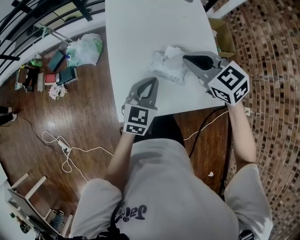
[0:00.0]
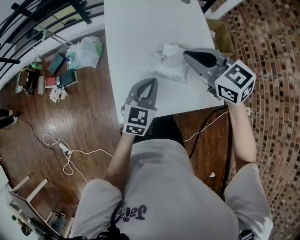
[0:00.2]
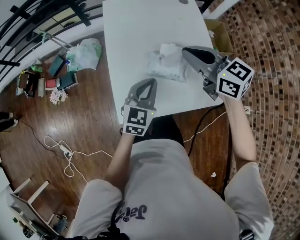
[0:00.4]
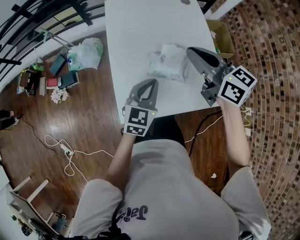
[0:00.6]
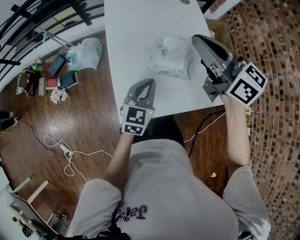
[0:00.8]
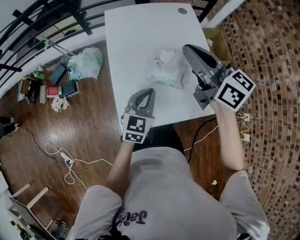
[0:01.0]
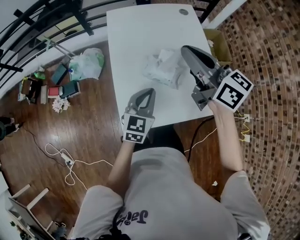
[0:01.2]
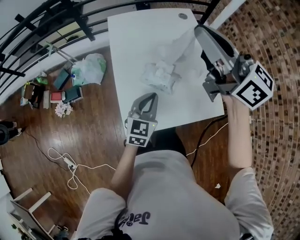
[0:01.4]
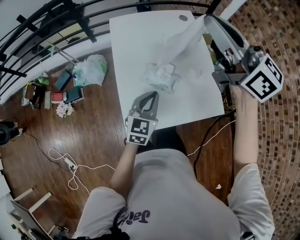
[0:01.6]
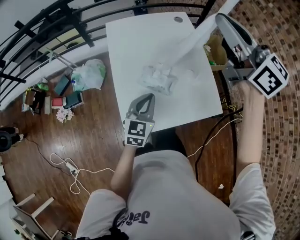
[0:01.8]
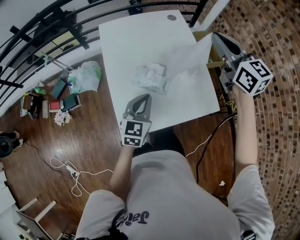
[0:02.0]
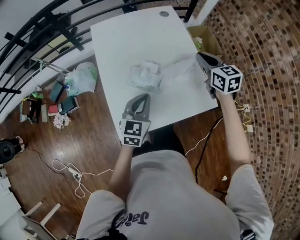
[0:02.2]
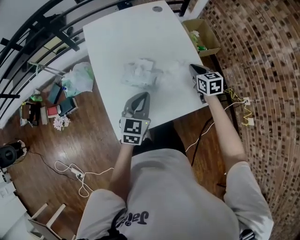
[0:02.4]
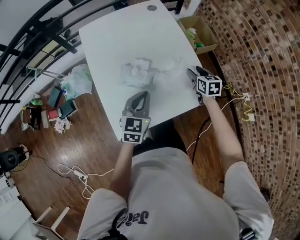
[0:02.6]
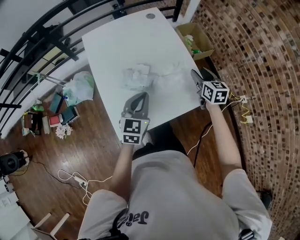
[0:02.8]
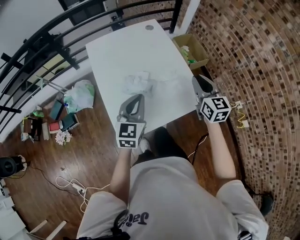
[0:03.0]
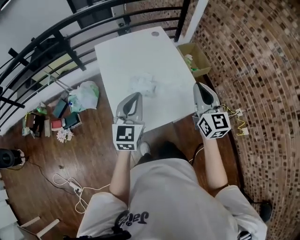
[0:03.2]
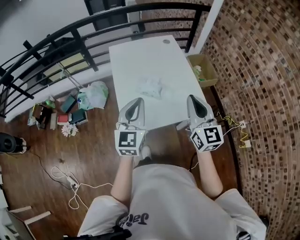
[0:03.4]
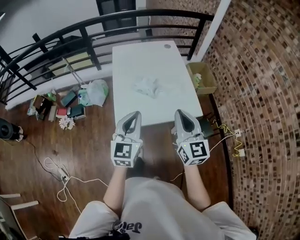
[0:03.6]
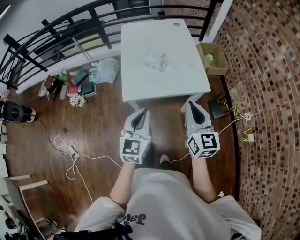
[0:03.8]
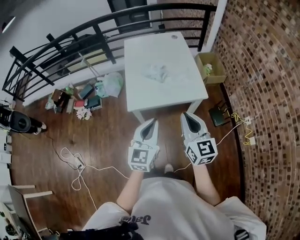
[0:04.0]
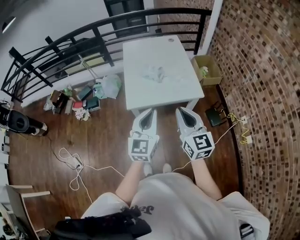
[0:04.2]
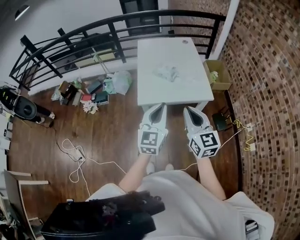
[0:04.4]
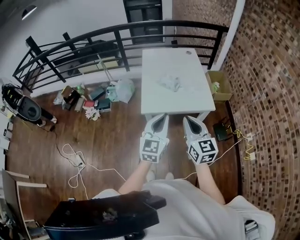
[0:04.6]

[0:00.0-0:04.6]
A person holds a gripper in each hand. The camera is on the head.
0:00.0 to 0:01.6: The right gripper is displaced upward by roughly 25 cm, and tilts its fingers about 40 degrees upward.
0:01.6 to 0:03.0: The right gripper travels downward and to the right by some 30 cm, rotates roughly 50 degrees, and opens and closes again. The left gripper heads upward, covering roughly 5 cm.
0:03.0 to 0:04.6: The grippers both shift backward by roughly 35 cm. The right gripper rotates about 20 degrees.

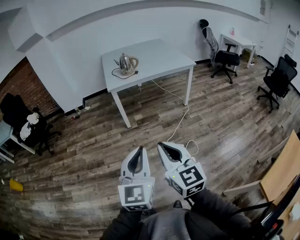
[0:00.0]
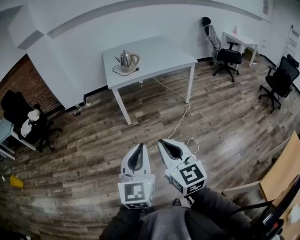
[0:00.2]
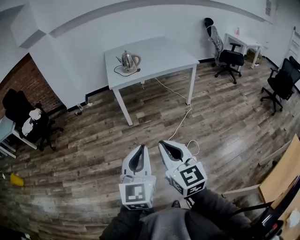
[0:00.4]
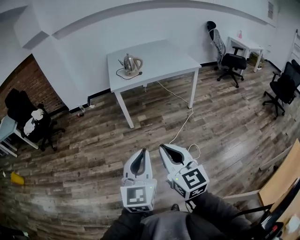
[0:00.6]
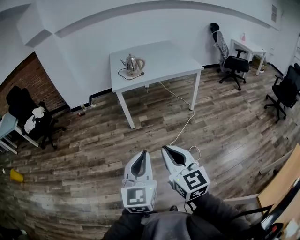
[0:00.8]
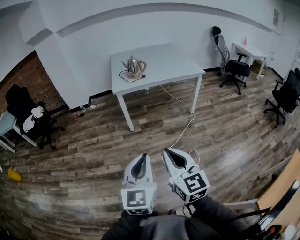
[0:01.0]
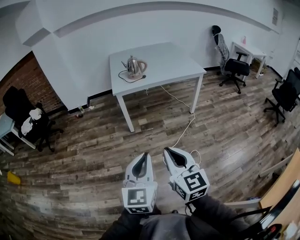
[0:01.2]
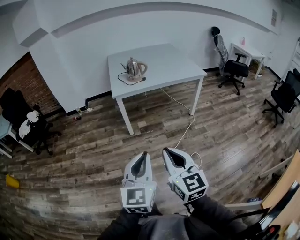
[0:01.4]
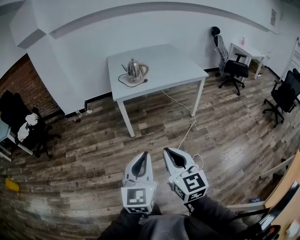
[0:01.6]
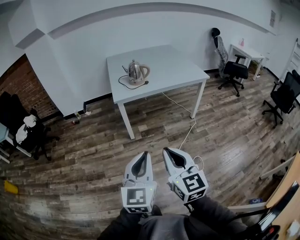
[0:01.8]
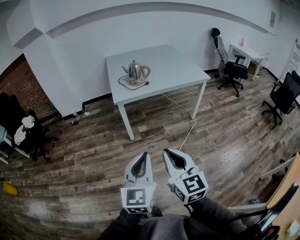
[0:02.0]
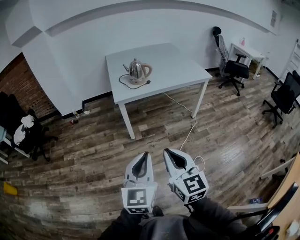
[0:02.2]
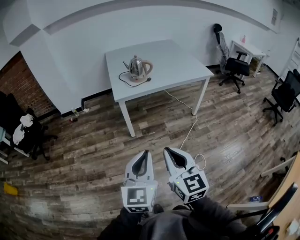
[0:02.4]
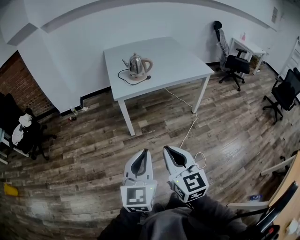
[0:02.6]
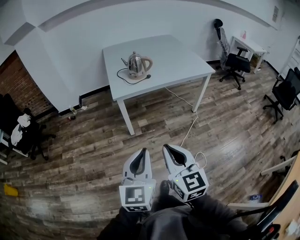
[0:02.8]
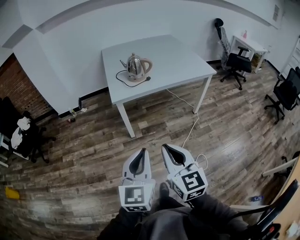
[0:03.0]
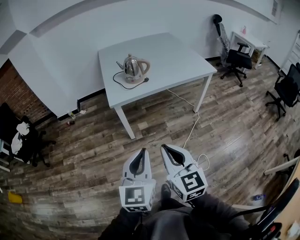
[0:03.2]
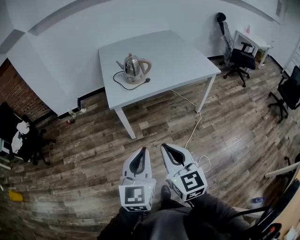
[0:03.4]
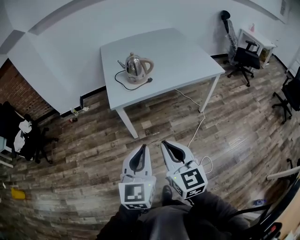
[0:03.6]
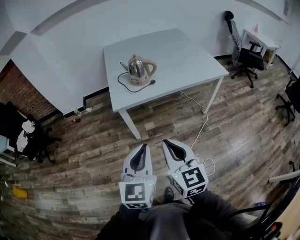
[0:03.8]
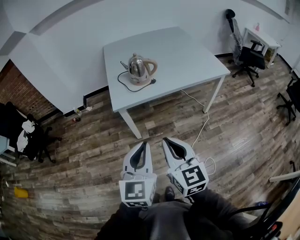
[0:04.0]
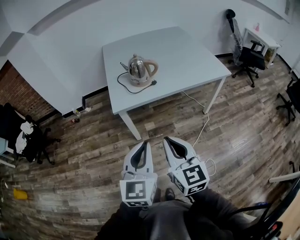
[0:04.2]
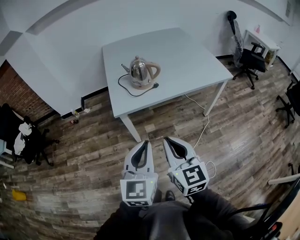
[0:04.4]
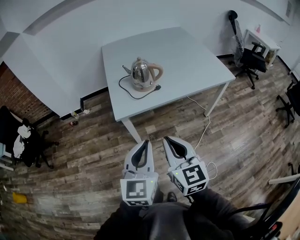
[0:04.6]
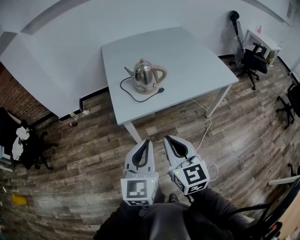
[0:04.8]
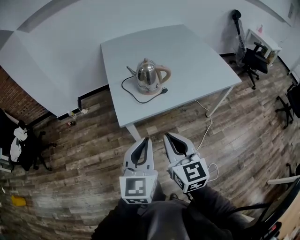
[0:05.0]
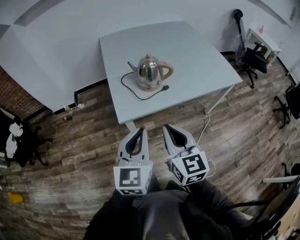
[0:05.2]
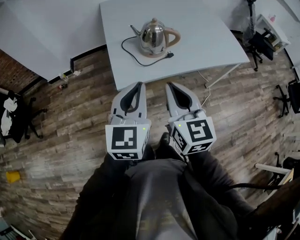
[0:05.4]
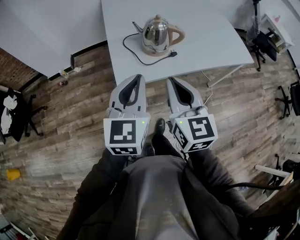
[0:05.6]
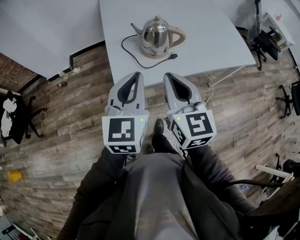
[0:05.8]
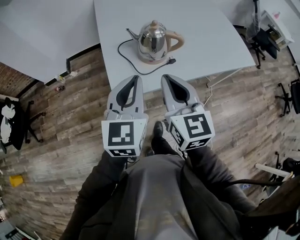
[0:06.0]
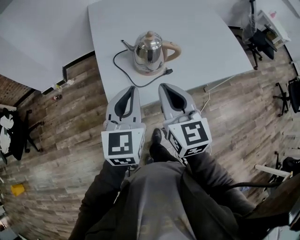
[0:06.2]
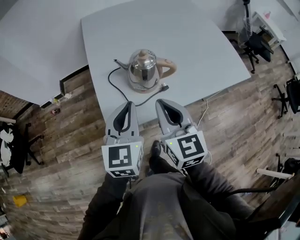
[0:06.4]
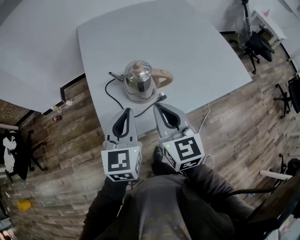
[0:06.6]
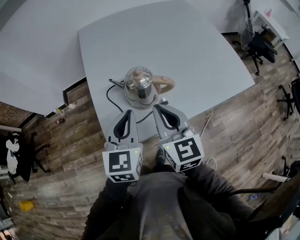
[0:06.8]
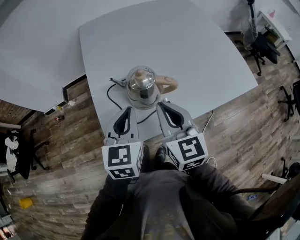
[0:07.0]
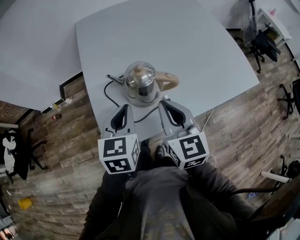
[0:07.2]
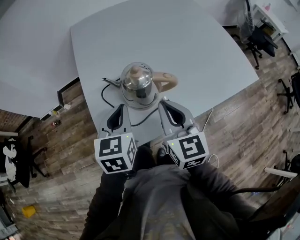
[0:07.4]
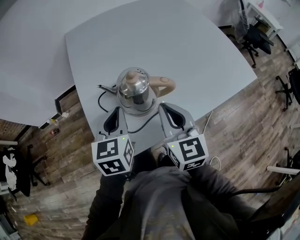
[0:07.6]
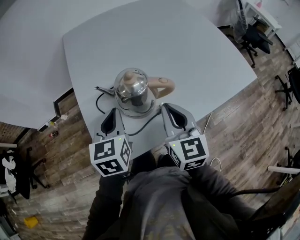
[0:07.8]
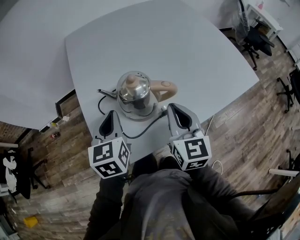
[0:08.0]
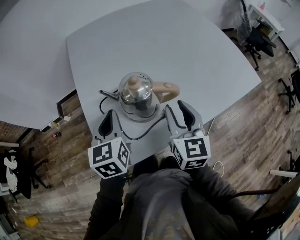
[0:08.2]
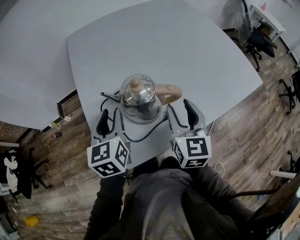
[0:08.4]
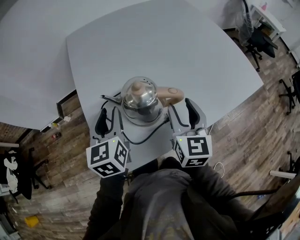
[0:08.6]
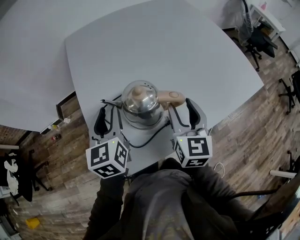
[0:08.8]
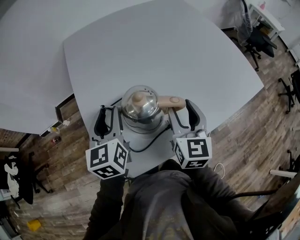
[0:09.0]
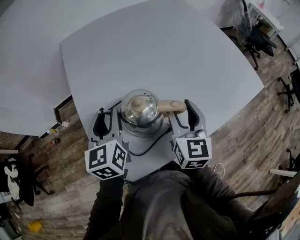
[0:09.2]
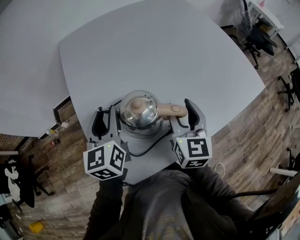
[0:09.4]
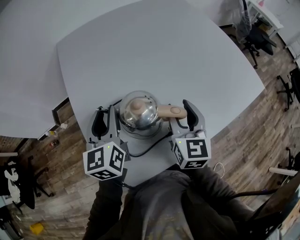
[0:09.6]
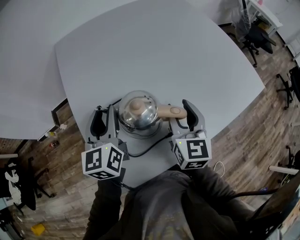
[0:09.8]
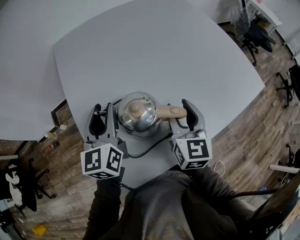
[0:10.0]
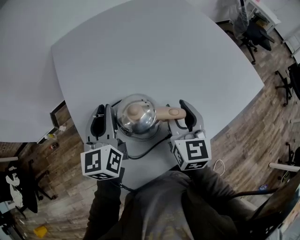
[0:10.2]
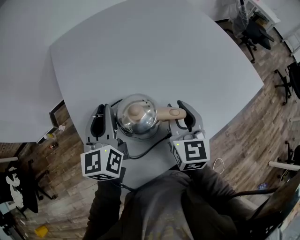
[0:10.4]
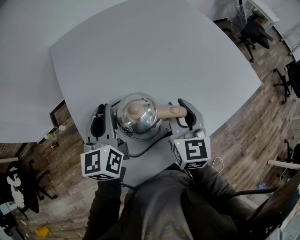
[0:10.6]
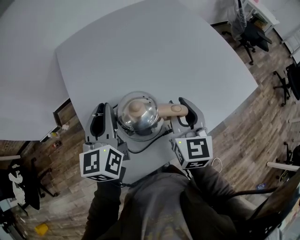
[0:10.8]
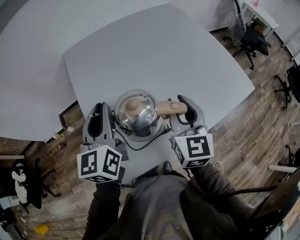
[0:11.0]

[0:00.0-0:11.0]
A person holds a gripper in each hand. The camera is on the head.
0:00.0 to 0:01.6: Both grippers travel together forward, approximately 15 cm.
0:01.6 to 0:03.2: Both grippers move forward, approximately 20 cm.
0:03.2 to 0:04.8: The grippers both shift forward by some 25 cm.
0:04.8 to 0:06.2: Both grippers move forward, about 25 cm.
0:06.2 to 0:07.8: The left gripper is displaced forward and downward by some 20 cm; the right gripper moves forward, downward and to the right, about 20 cm.
0:07.8 to 0:09.4: The two grippers go roughly 10 cm forward. The right gripper opens. The left gripper opens its fingers.
0:09.4 to 0:11.0: Both grippers travel together upward, about 15 cm. The left gripper closes.

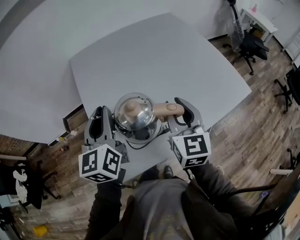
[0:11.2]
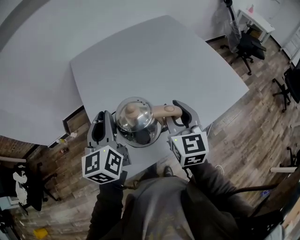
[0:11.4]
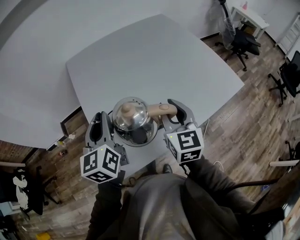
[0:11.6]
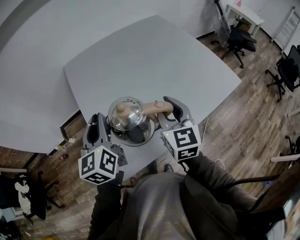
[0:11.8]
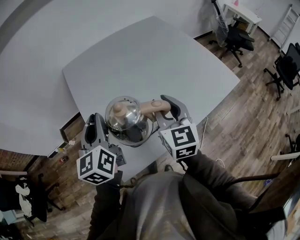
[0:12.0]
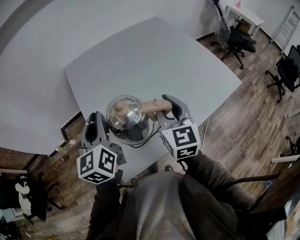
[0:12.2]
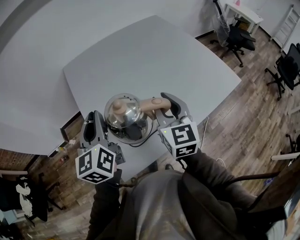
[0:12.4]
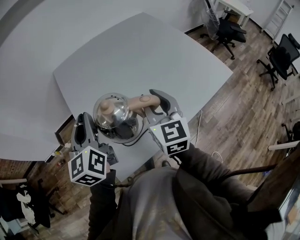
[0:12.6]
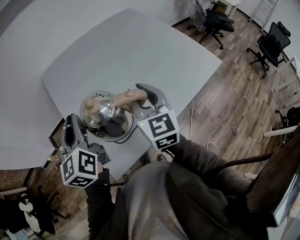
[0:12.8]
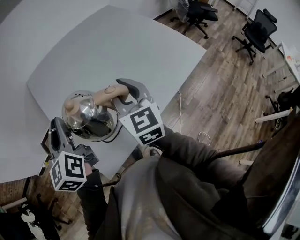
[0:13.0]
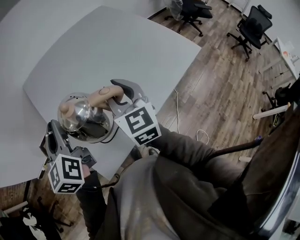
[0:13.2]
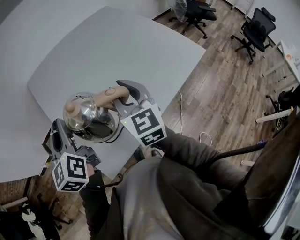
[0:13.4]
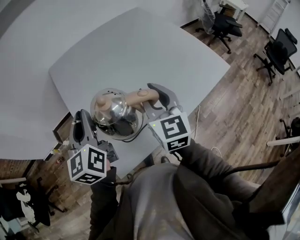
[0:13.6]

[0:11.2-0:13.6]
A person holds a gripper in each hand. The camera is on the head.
0:11.2 to 0:12.4: There are only small adjustments of the grippers.
0:12.4 to 0:13.6: Both grippers stay put.

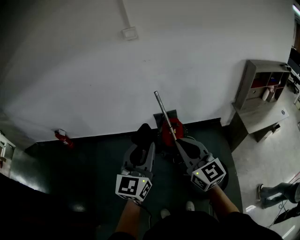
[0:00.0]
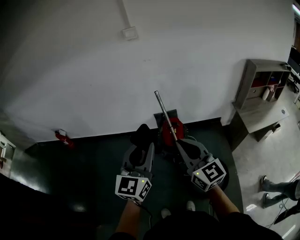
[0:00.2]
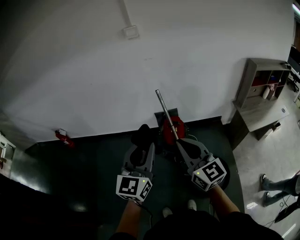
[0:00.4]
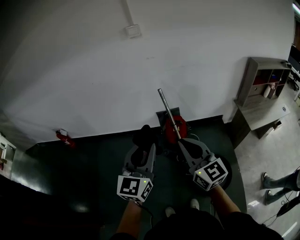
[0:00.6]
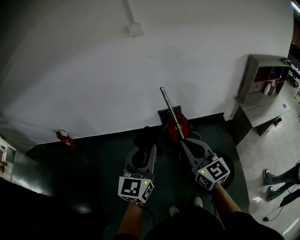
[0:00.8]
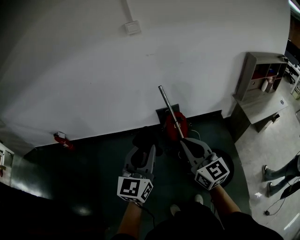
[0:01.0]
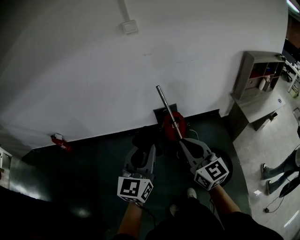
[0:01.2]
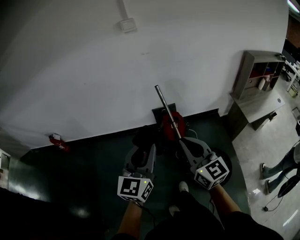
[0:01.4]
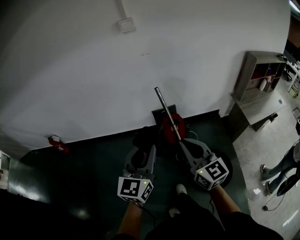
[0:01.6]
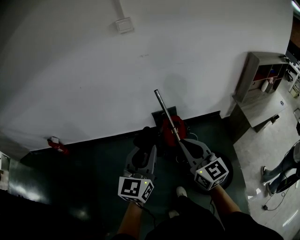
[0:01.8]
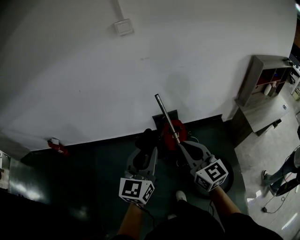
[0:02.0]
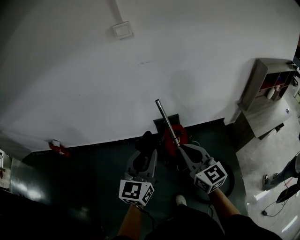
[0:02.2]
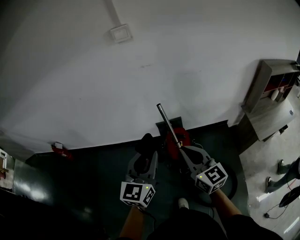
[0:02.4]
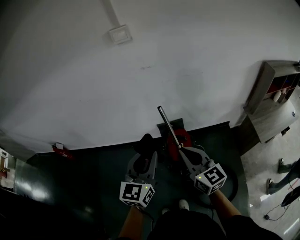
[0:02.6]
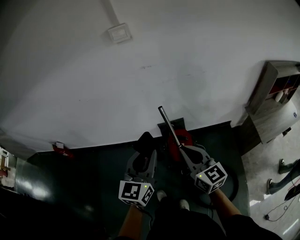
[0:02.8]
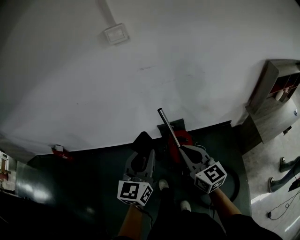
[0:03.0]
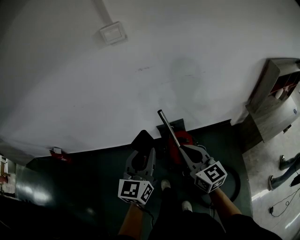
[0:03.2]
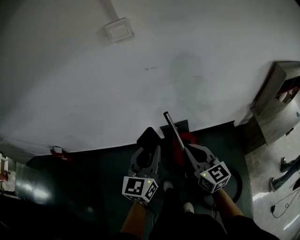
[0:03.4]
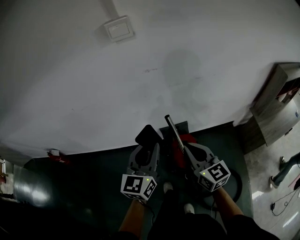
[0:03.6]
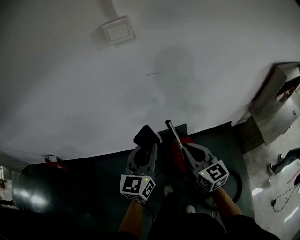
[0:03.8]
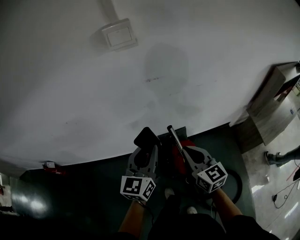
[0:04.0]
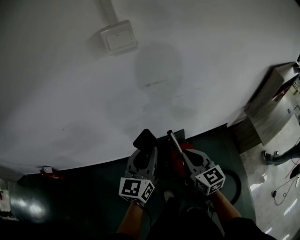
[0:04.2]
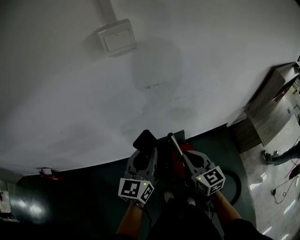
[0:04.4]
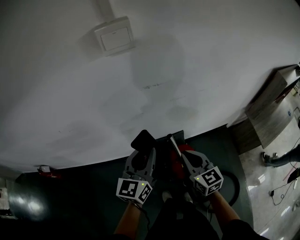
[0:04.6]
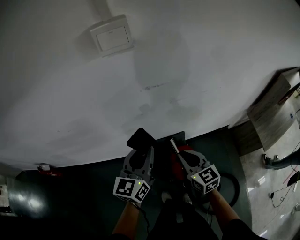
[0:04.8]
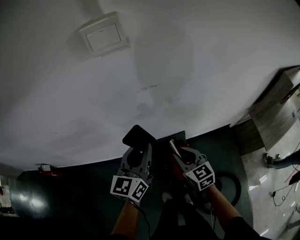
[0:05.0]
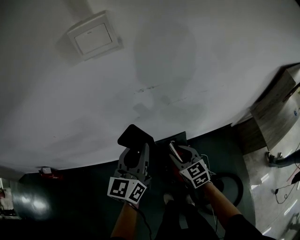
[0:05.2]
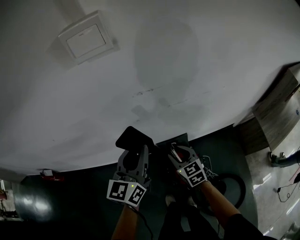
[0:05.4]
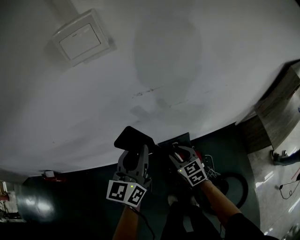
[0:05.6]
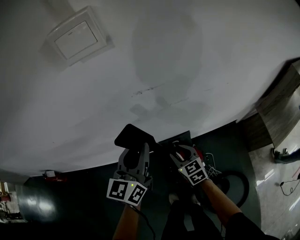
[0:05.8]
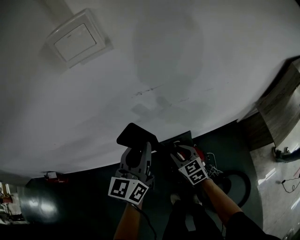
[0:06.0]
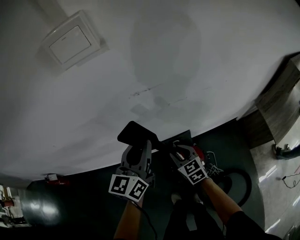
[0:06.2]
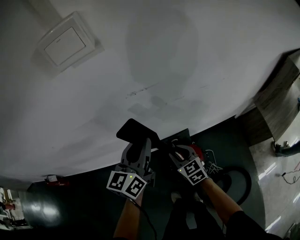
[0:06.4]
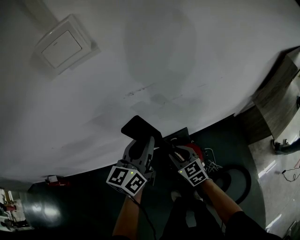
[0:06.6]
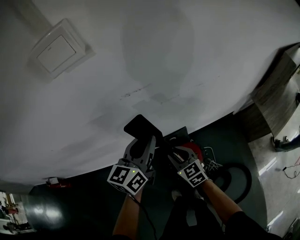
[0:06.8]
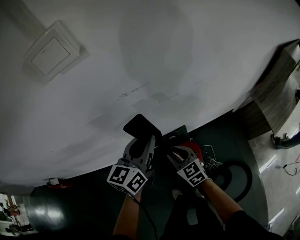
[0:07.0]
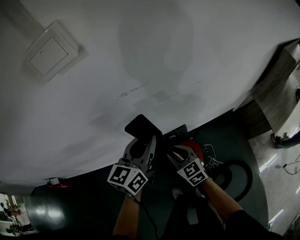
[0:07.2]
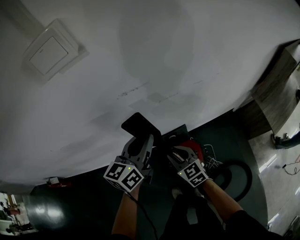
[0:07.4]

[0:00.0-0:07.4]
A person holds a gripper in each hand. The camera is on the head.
0:00.0 to 0:01.4: The two grippers go some 5 cm to the left.
0:01.4 to 0:03.0: The two grippers go roughly 25 cm forward.
0:03.0 to 0:04.4: The two grippers go approximately 20 cm forward.
0:04.4 to 0:06.0: The right gripper heads downward and forward, covering approximately 20 cm, and opens its fingers; the left gripper goes some 10 cm forward.
0:06.0 to 0:07.4: The left gripper shifts by about 5 cm.
